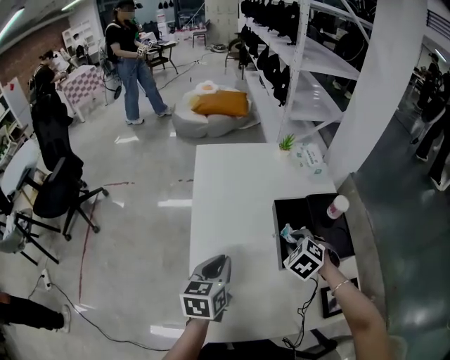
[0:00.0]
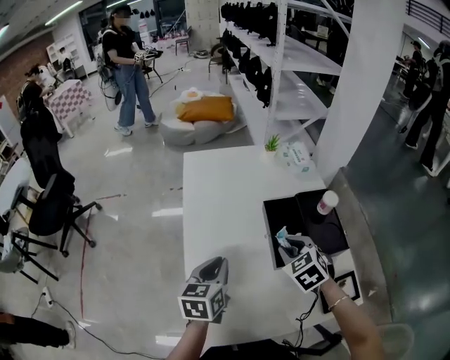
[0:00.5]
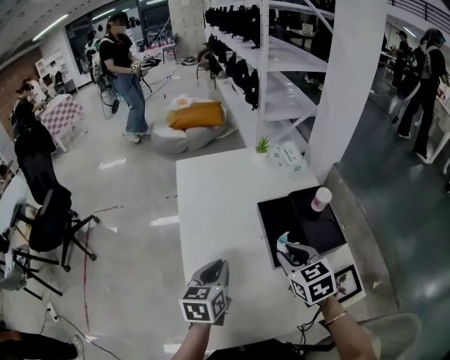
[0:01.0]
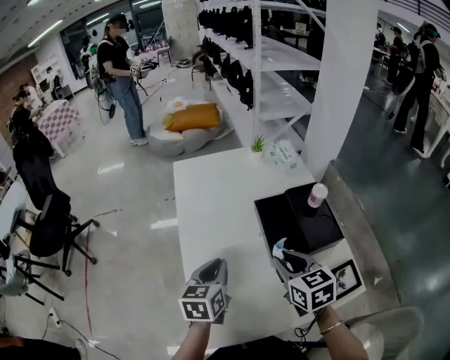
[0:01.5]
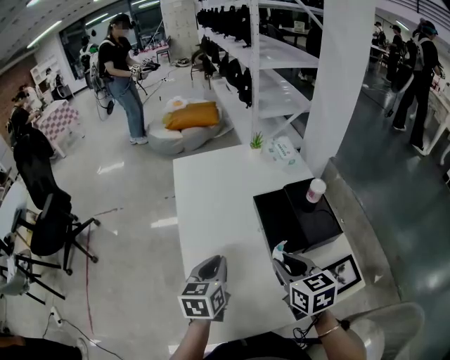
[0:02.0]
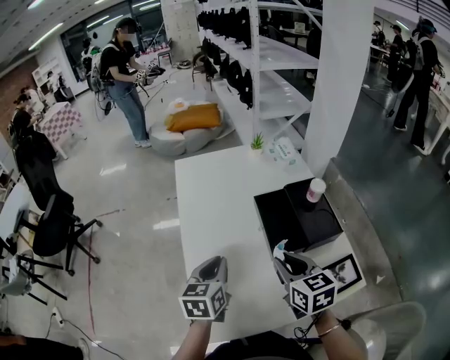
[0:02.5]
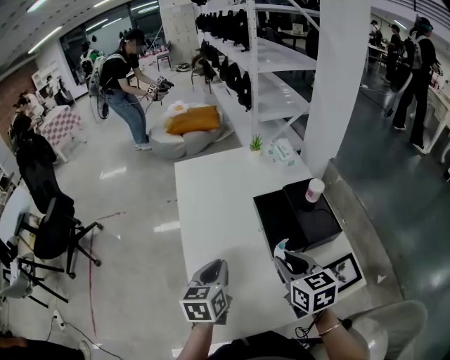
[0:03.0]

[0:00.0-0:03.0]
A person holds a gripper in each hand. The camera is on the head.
0:00.0 to 0:01.5: The right gripper shifts about 15 cm upward and backward, and rolls clockwise, seen from behind, by roughly 50 degrees.
0:01.5 to 0:03.0: The grippers make only small movements.

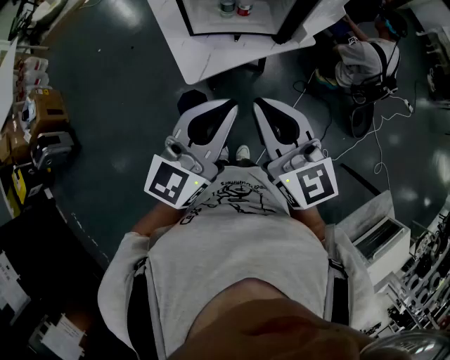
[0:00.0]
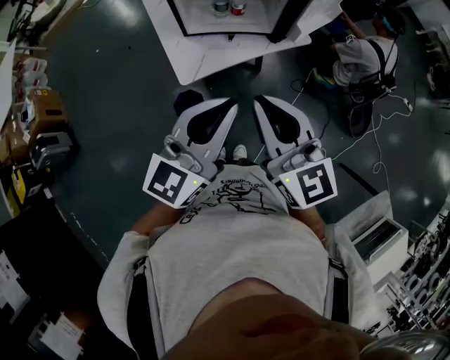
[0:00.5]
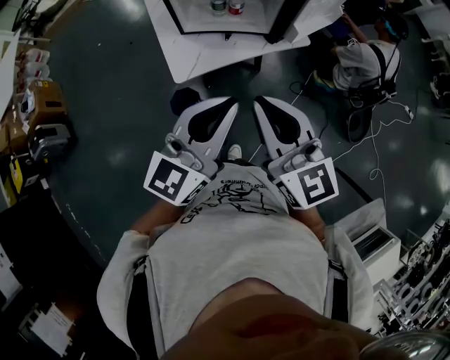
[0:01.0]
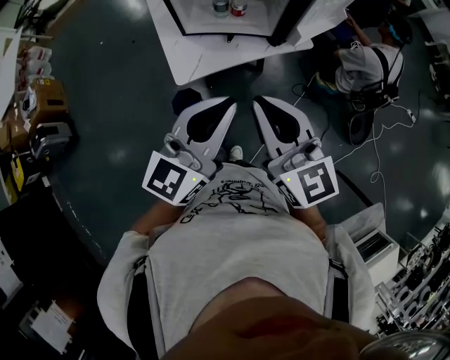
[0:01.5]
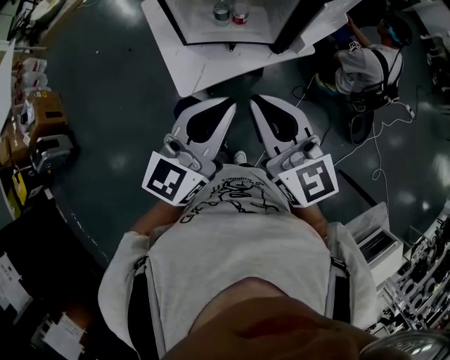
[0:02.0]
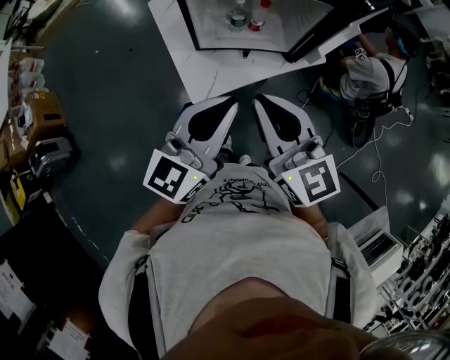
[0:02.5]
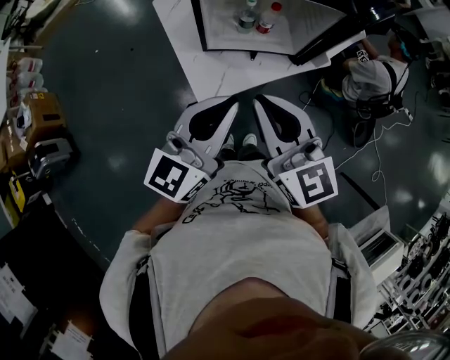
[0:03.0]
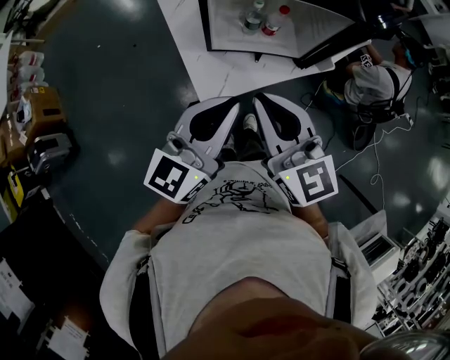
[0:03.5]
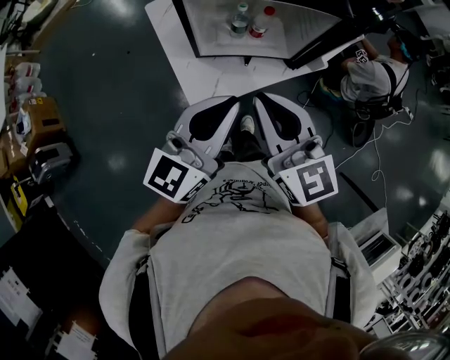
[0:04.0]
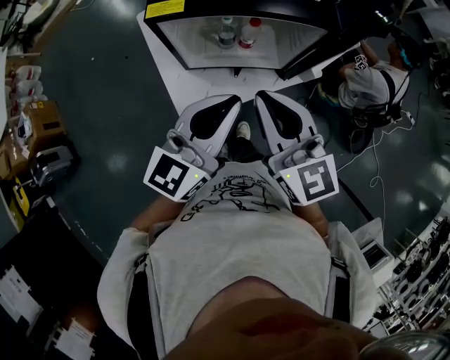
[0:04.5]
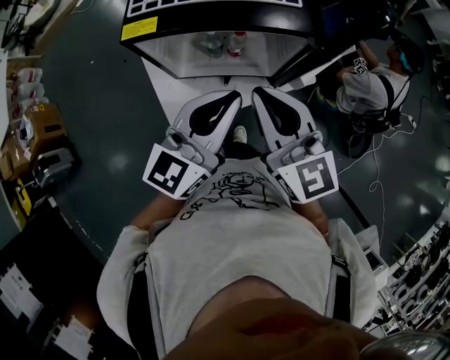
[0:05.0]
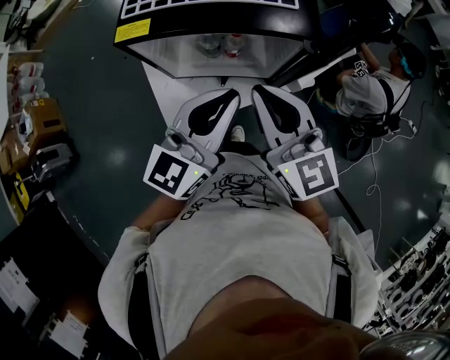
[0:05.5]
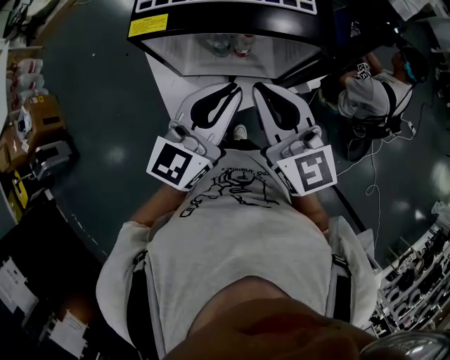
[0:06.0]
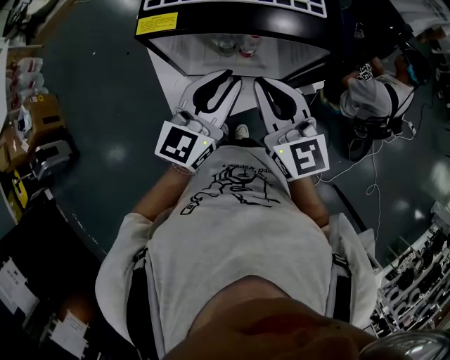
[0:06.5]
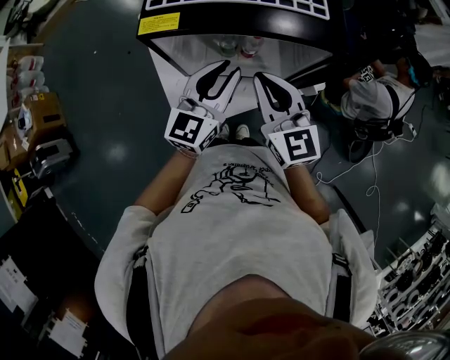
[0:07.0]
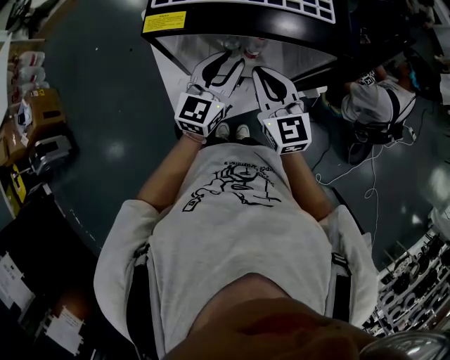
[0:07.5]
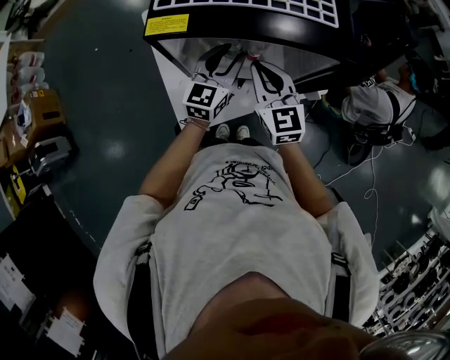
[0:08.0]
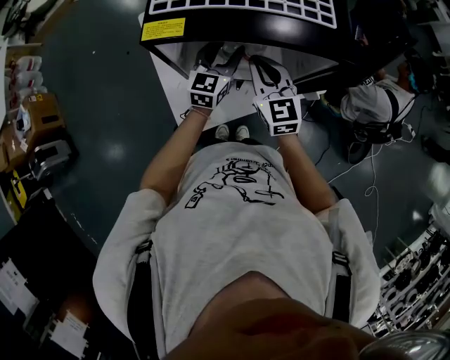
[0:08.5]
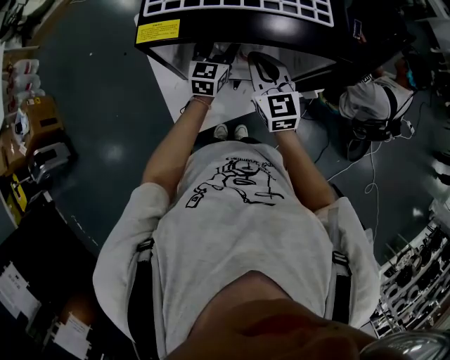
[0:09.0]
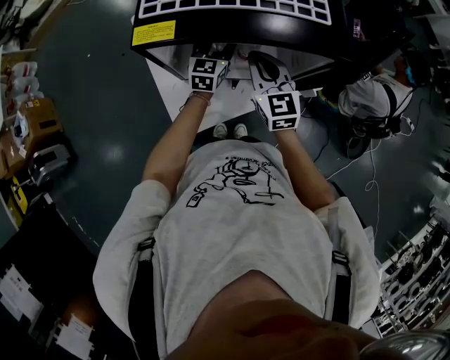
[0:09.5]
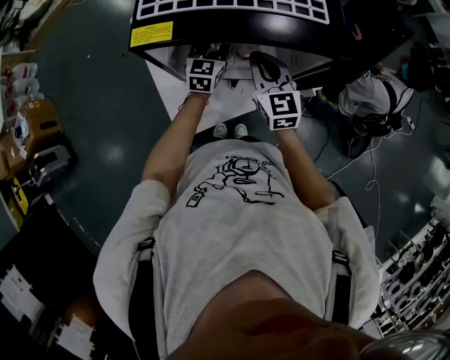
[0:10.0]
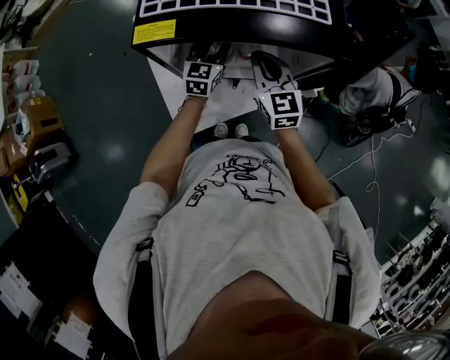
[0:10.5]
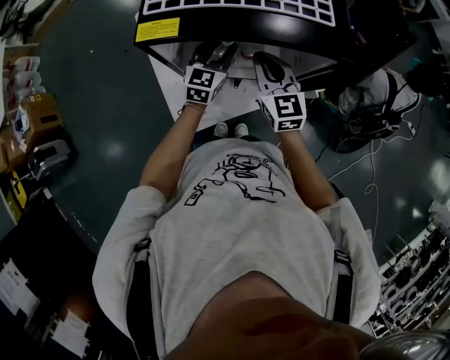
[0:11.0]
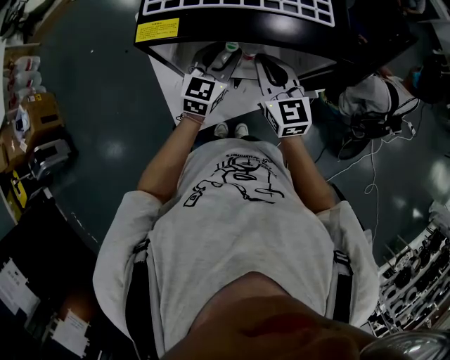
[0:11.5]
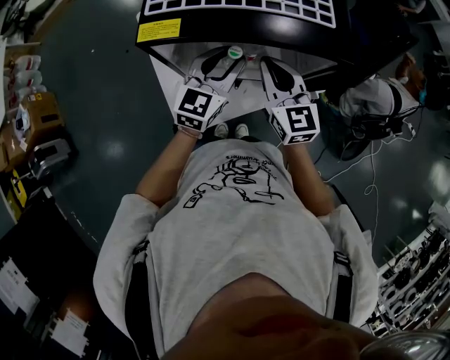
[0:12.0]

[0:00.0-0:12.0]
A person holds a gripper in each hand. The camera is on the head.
0:00.0 to 0:02.0: Both grippers move forward, some 10 cm.
0:02.0 to 0:04.0: The grippers both shift forward and to the left by approximately 15 cm.
0:04.0 to 0:06.0: The grippers both shift forward and to the right by roughly 15 cm.
0:06.0 to 0:08.0: Both grippers travel together downward and forward, about 20 cm. The left gripper opens up.
0:08.0 to 0:10.0: The left gripper travels forward and downward by roughly 10 cm, while the right gripper ends up roughly 5 cm from where it was.
0:10.0 to 0:12.0: The right gripper changes place by about 5 cm; the left gripper moves upward and backward, some 15 cm.

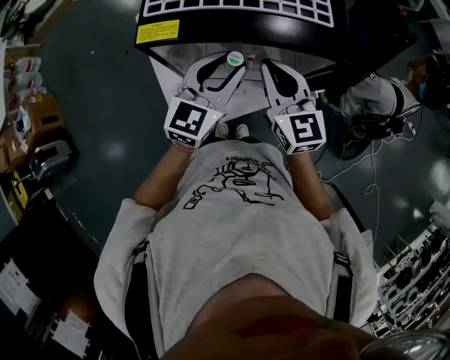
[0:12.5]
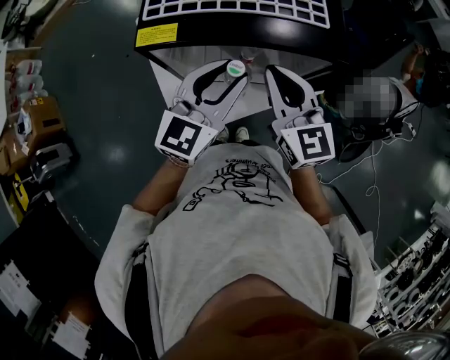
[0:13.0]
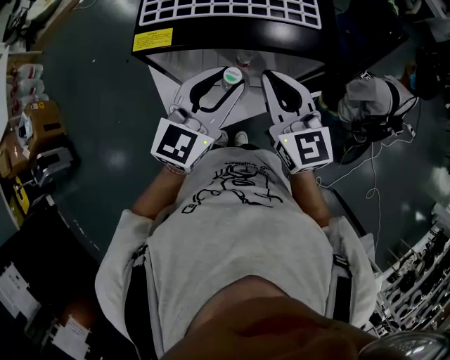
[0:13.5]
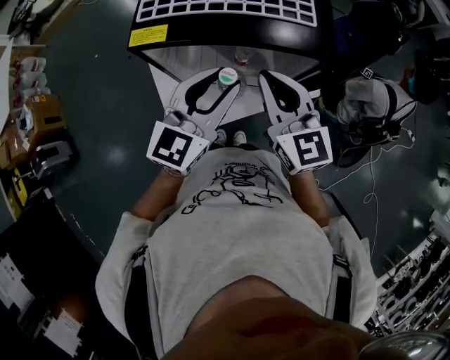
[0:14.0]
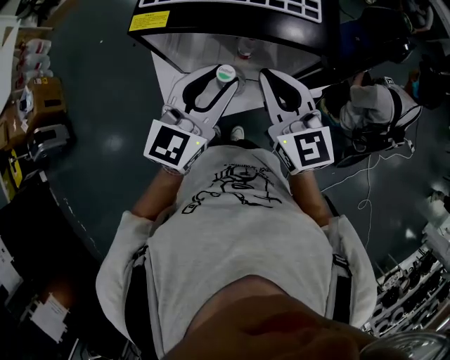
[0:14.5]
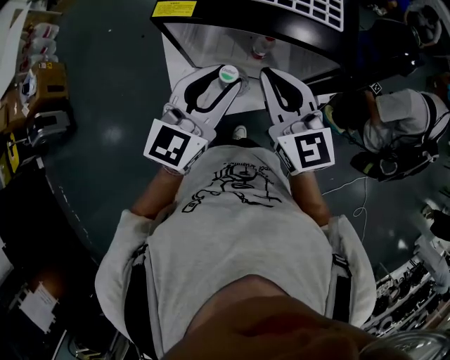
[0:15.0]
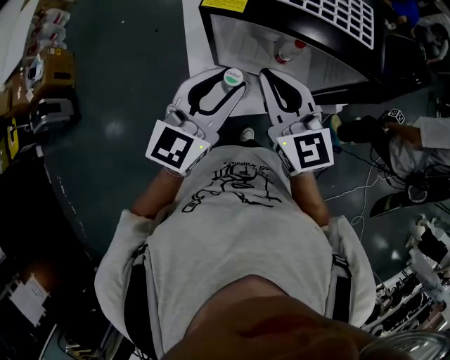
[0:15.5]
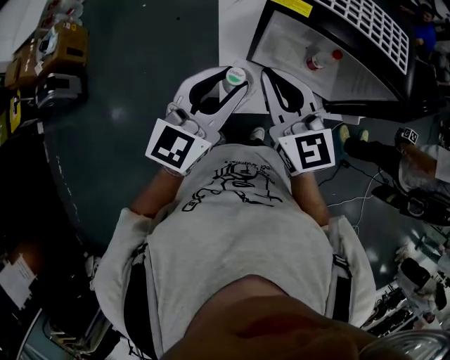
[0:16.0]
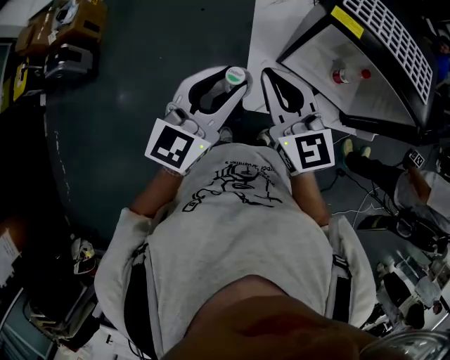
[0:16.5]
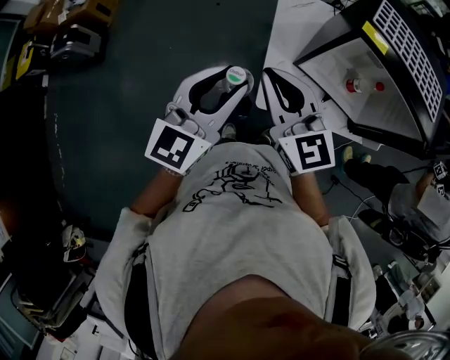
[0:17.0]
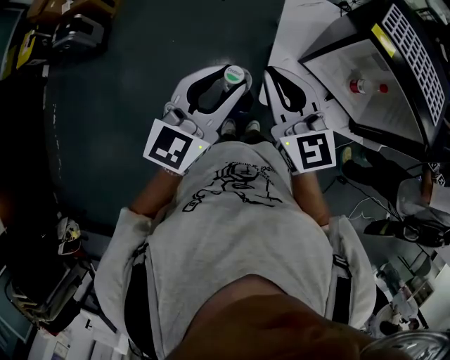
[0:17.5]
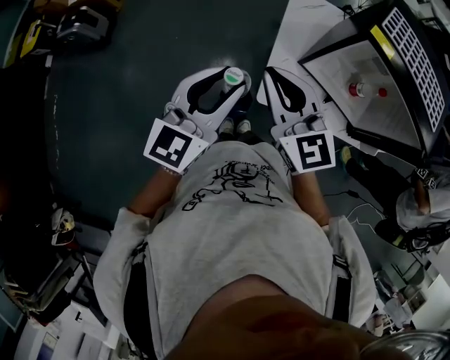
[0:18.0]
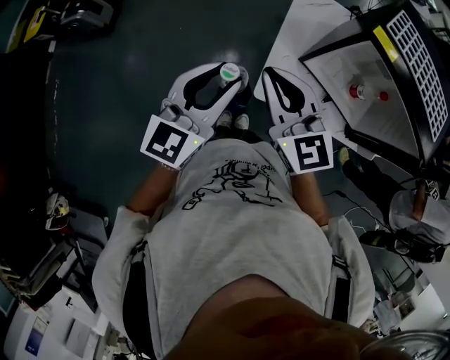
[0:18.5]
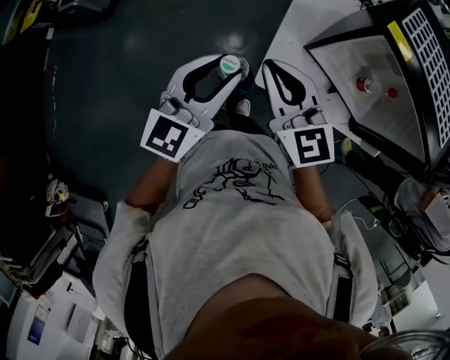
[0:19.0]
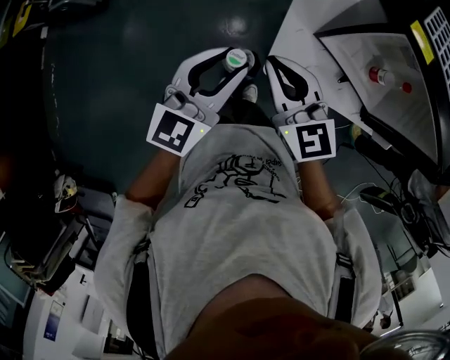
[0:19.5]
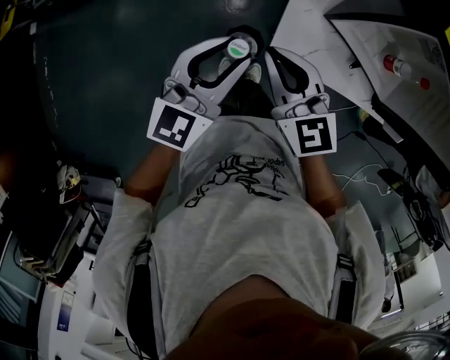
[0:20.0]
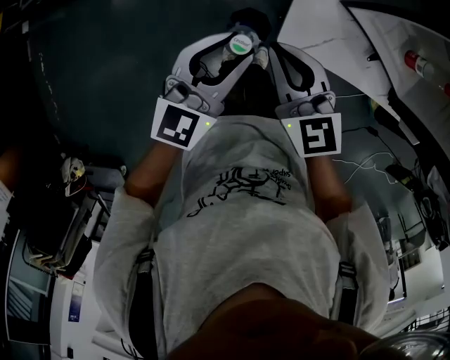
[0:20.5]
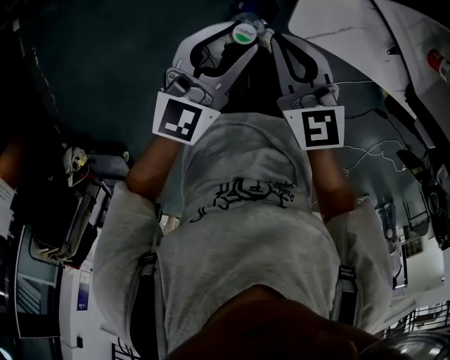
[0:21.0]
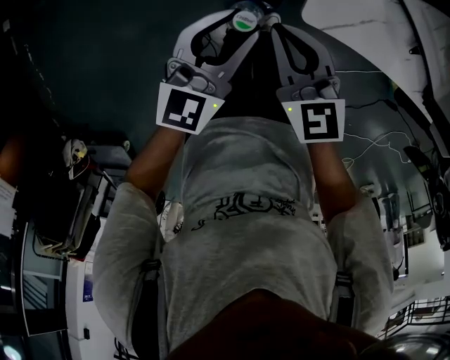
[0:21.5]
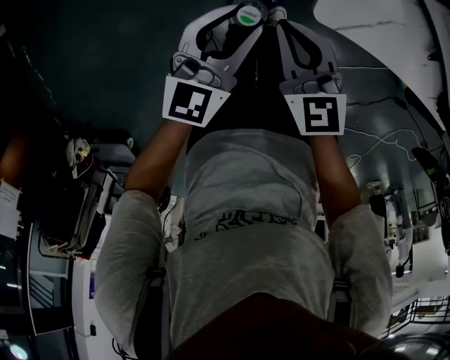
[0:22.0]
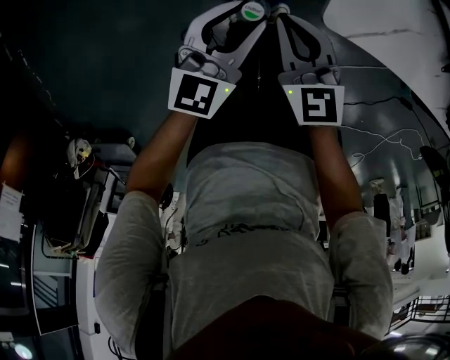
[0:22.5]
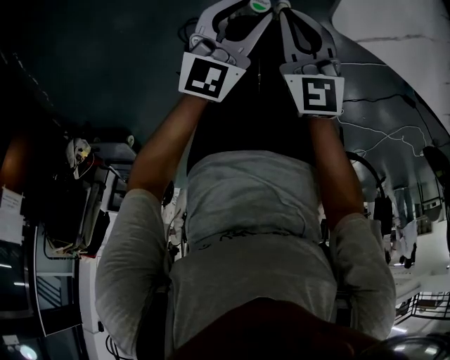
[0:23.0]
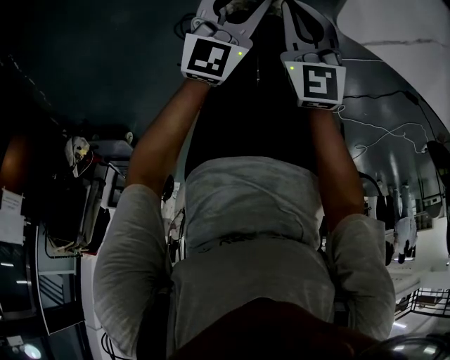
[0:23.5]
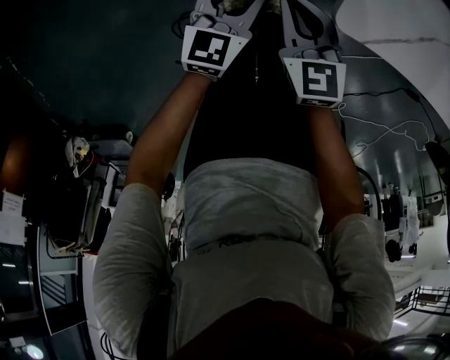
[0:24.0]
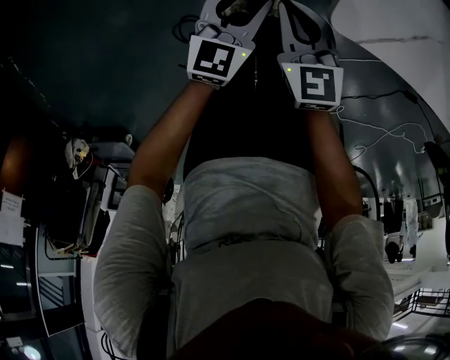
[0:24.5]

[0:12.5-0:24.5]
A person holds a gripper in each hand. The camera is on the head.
0:12.5 to 0:14.5: The left gripper goes approximately 10 cm backward and upward; the right gripper shifts by approximately 5 cm.
0:14.5 to 0:16.5: The two grippers go approximately 30 cm to the left. The right gripper changes its angle by roughly 20 degrees.
0:16.5 to 0:18.5: Both grippers move to the left, some 5 cm.
0:18.5 to 0:20.5: Both grippers move downward, about 20 cm.
0:20.5 to 0:22.5: The grippers both shift downward by approximately 25 cm.
0:22.5 to 0:24.5: Both grippers move downward, about 10 cm.
